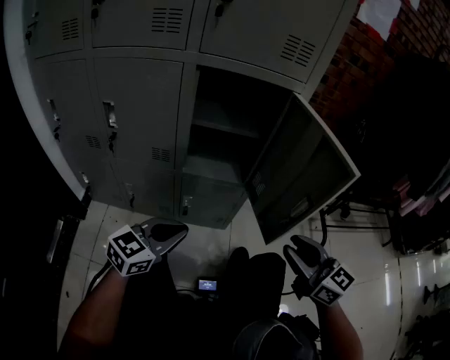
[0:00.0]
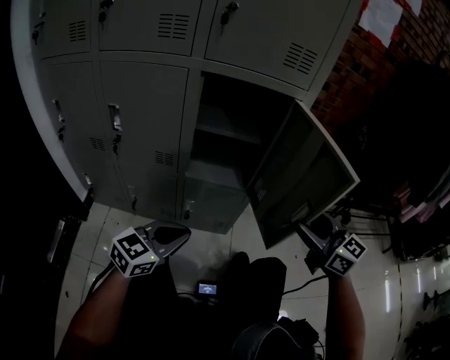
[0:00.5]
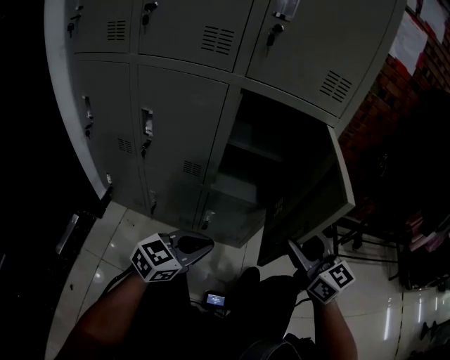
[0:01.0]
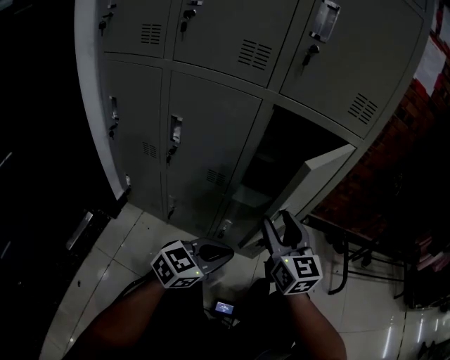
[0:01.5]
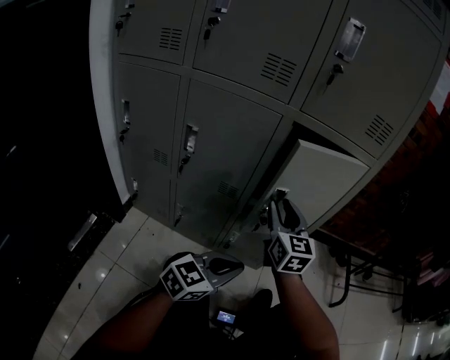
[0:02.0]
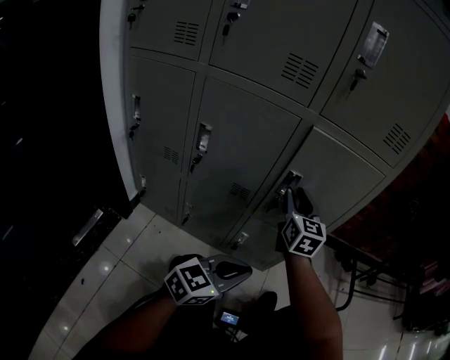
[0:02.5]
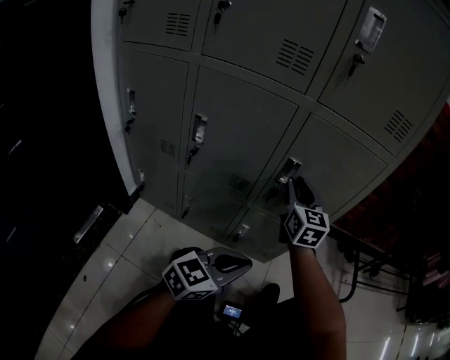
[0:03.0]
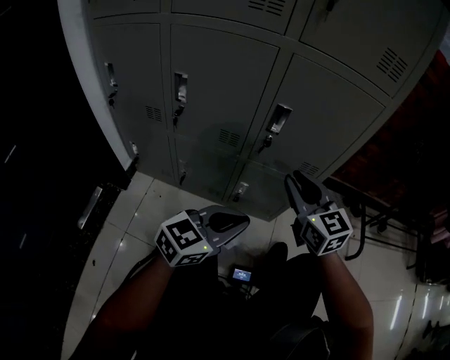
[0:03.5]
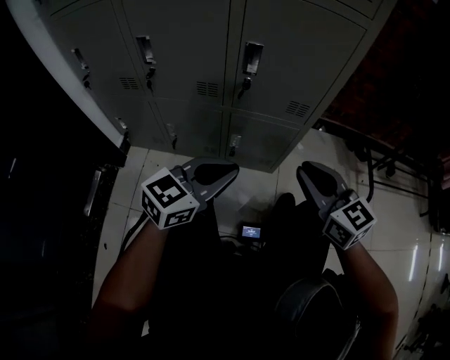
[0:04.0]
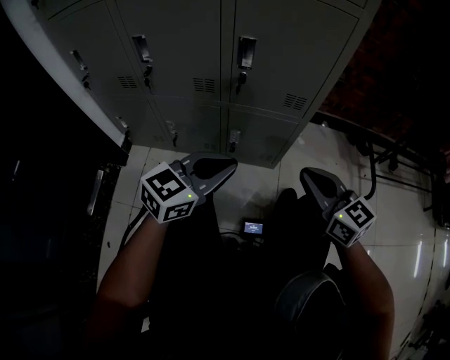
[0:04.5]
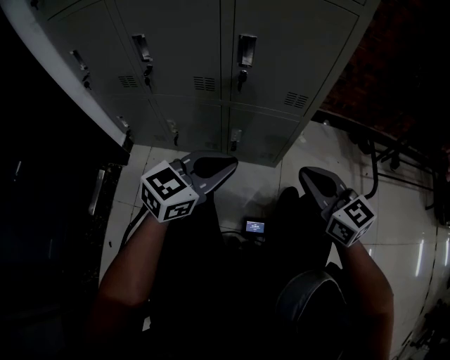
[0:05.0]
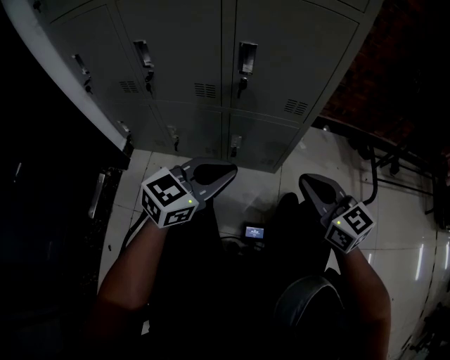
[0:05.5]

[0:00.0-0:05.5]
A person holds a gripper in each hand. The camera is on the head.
0:00.0 to 0:02.0: The right gripper goes roughly 30 cm to the left and forward, changes its angle by roughly 20 degrees, and opens and closes again.
0:02.0 to 0:03.5: The right gripper goes roughly 5 cm backward.
0:03.5 to 0:05.5: The right gripper moves backward, to the right and downward, about 15 cm.

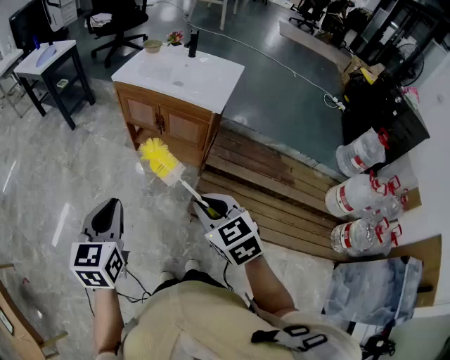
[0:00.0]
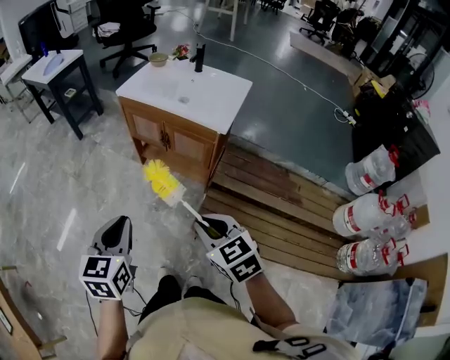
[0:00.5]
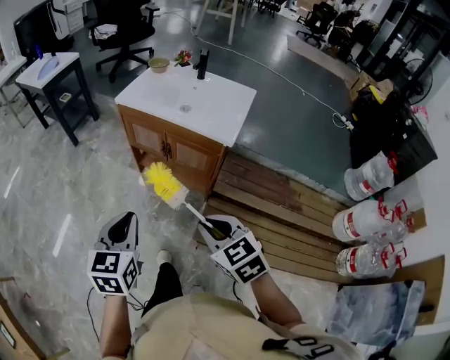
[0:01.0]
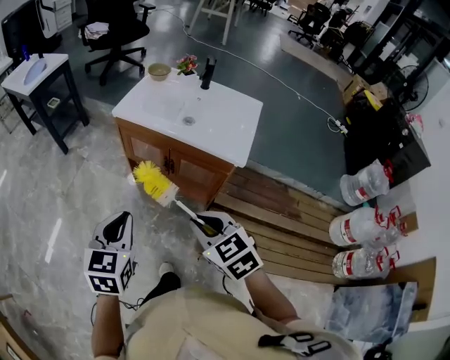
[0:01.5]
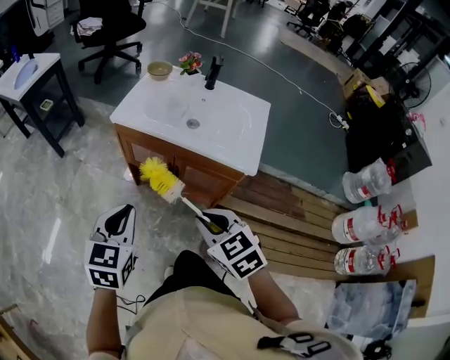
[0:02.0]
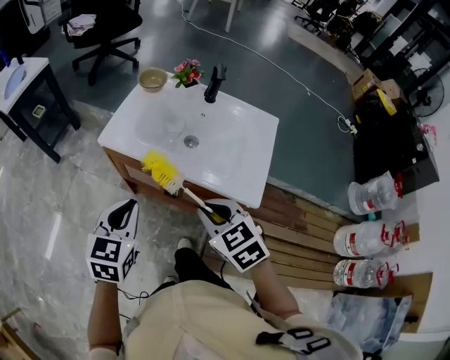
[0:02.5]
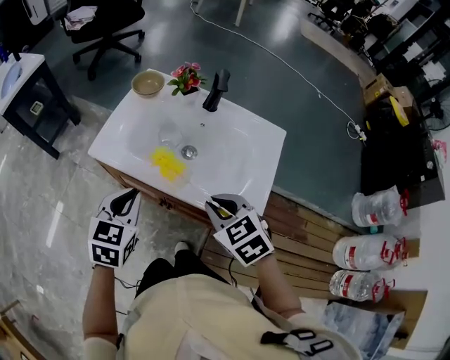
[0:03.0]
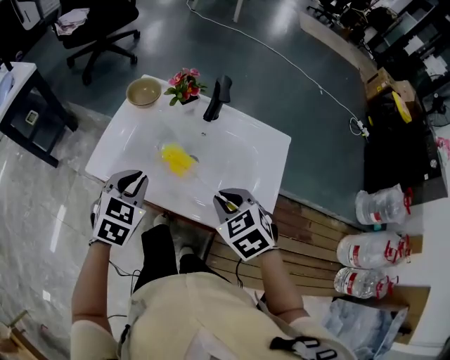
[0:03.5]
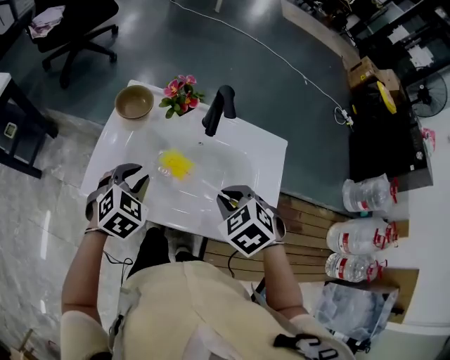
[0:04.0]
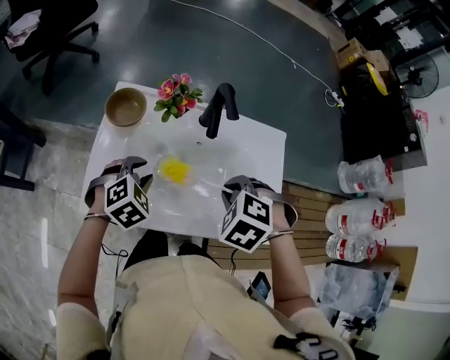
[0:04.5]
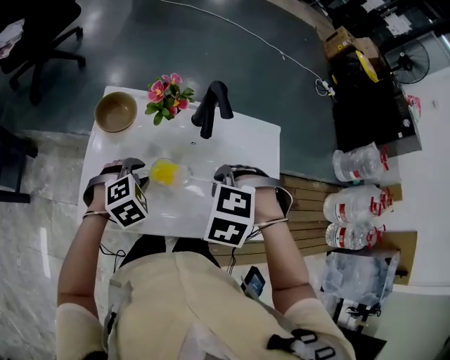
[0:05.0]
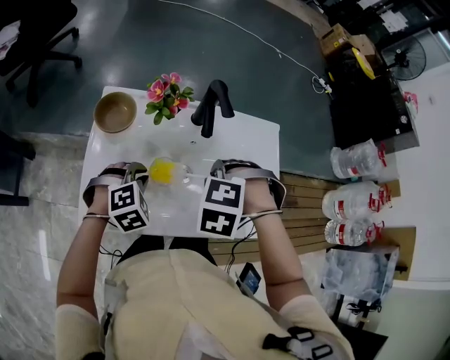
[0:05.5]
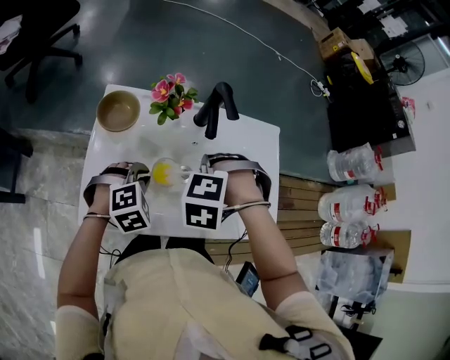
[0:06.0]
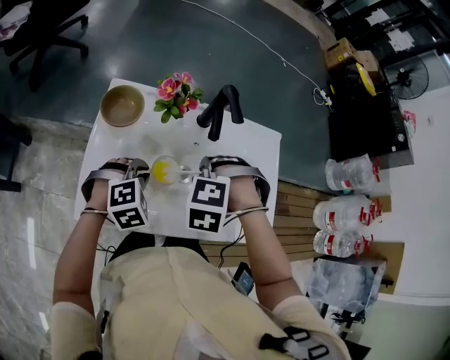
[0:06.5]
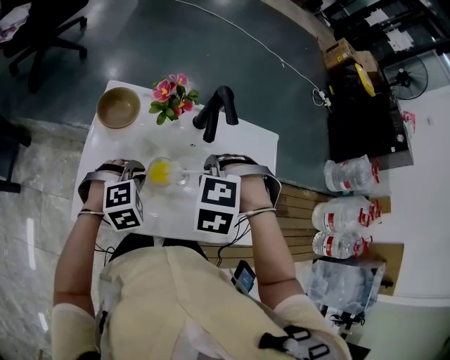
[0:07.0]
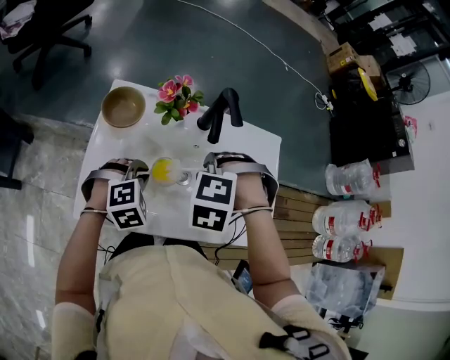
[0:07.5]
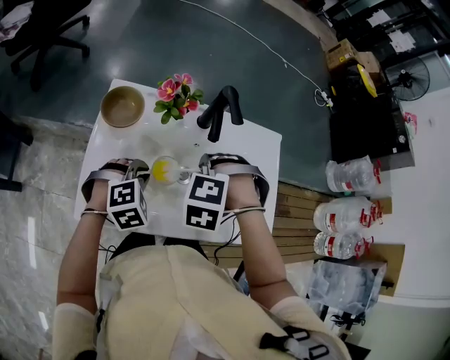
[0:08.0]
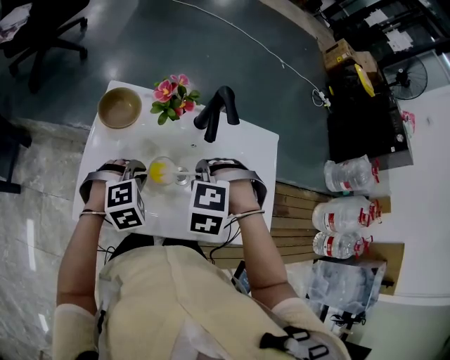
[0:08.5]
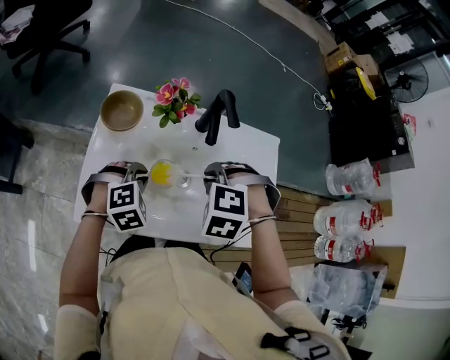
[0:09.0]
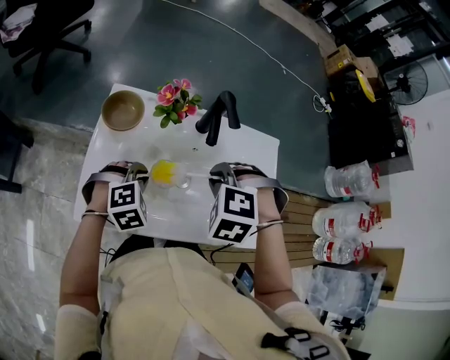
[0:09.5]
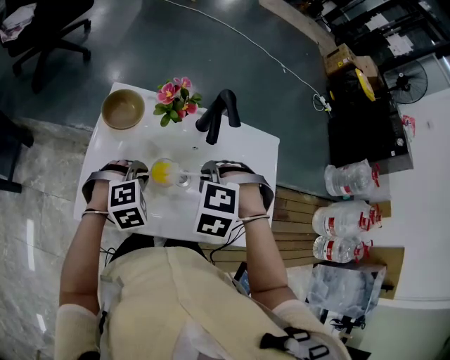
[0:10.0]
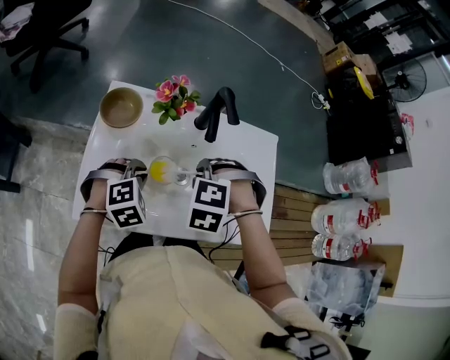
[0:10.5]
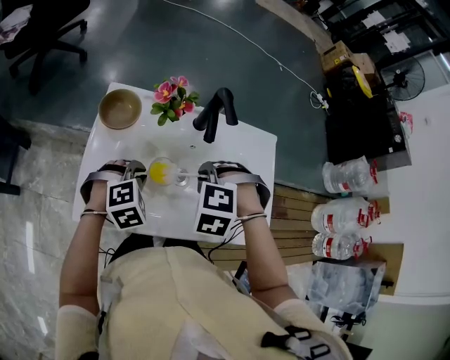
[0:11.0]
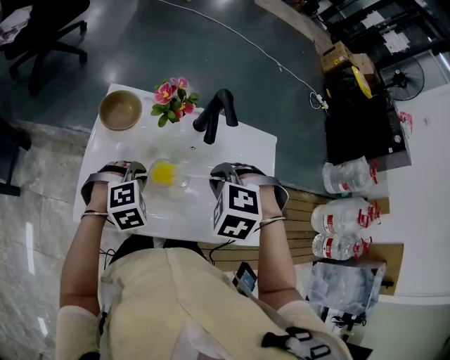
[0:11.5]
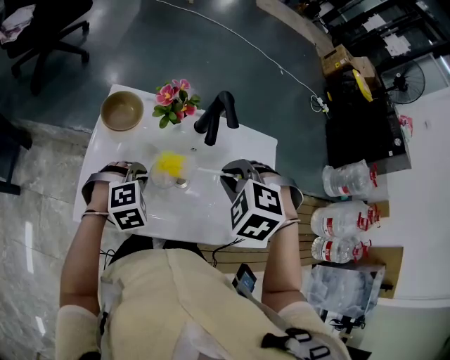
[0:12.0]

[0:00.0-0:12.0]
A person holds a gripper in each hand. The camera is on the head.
0:00.0 to 0:02.0: The left gripper ends up about 35 cm from where it was.
0:02.0 to 0:04.0: The left gripper moves about 40 cm, and turns by about 40 degrees.
0:04.0 to 0:06.0: The left gripper shifts approximately 5 cm downward, and rotates about 40 degrees.

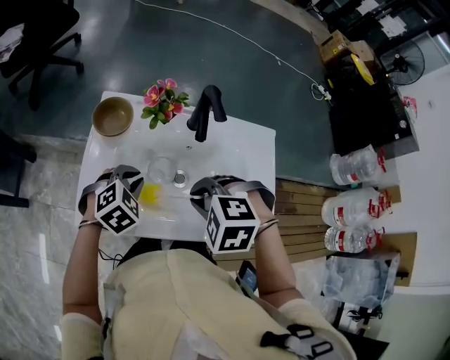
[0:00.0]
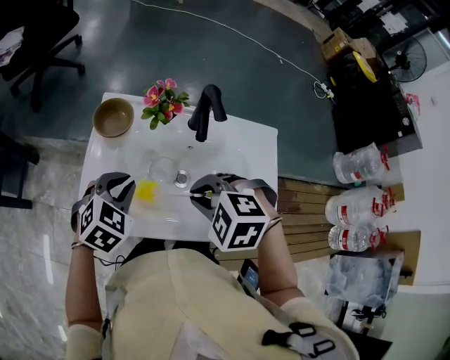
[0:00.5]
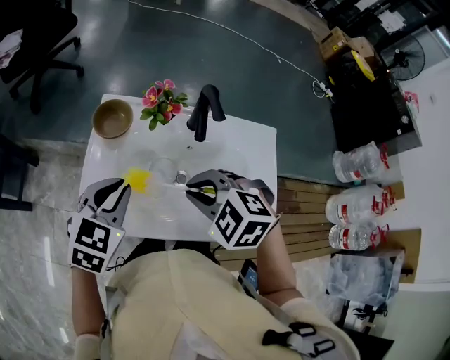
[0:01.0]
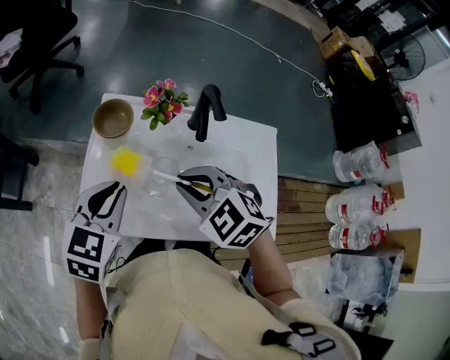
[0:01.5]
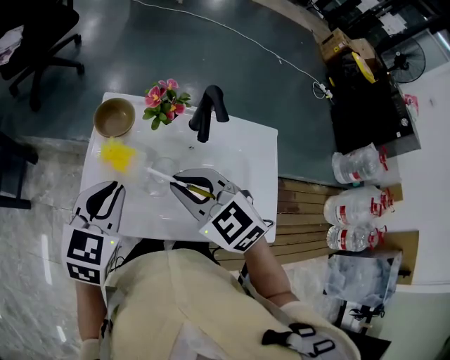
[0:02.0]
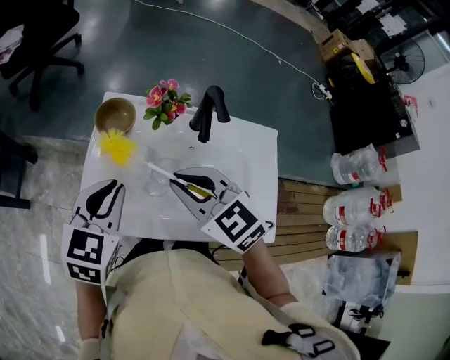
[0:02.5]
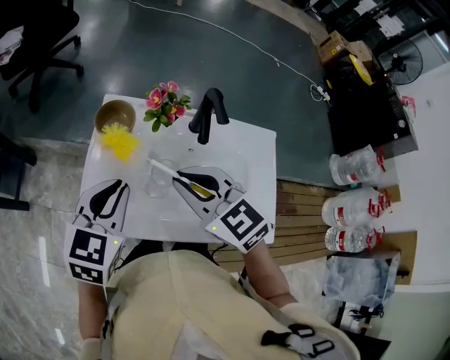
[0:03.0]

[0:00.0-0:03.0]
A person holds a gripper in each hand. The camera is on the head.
0:00.0 to 0:01.5: The left gripper goes roughly 15 cm upward, and rotates roughly 40 degrees.

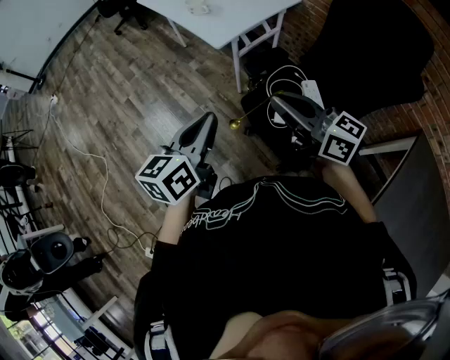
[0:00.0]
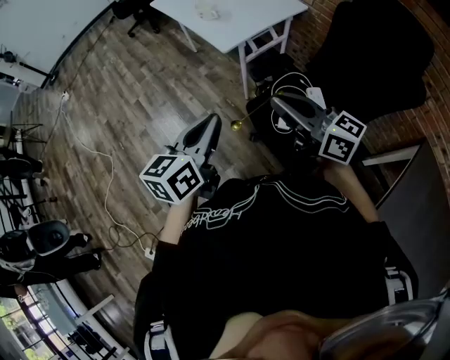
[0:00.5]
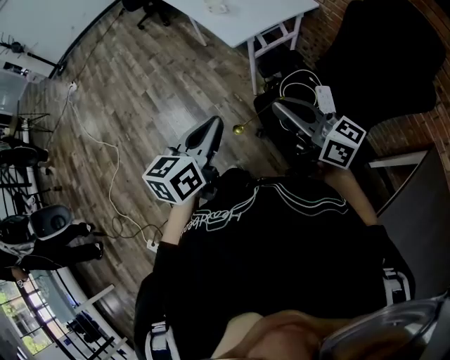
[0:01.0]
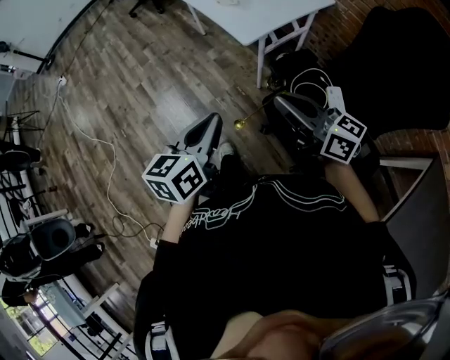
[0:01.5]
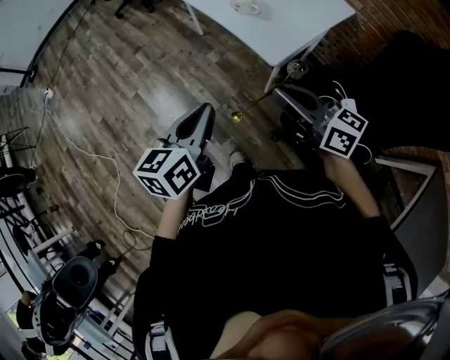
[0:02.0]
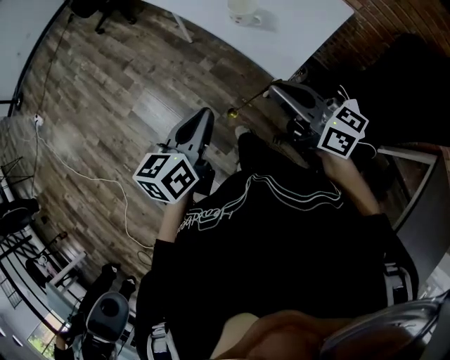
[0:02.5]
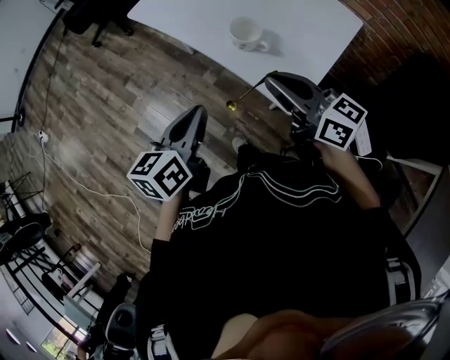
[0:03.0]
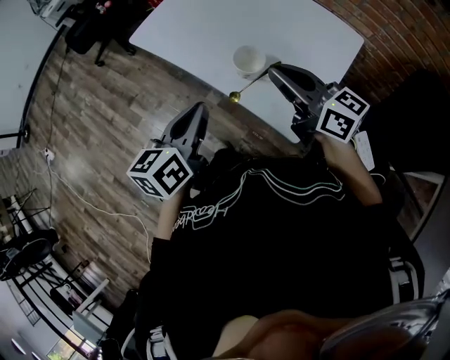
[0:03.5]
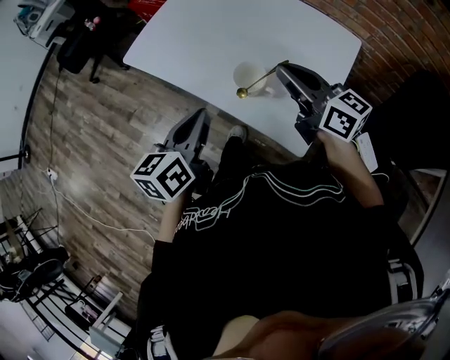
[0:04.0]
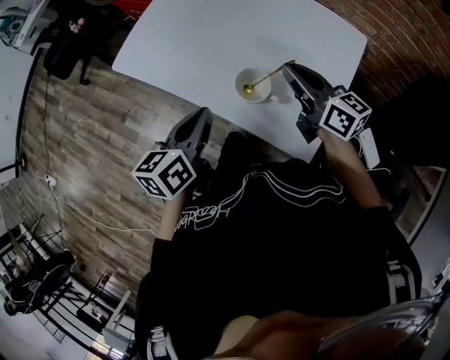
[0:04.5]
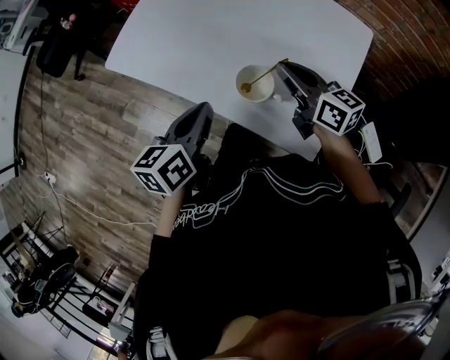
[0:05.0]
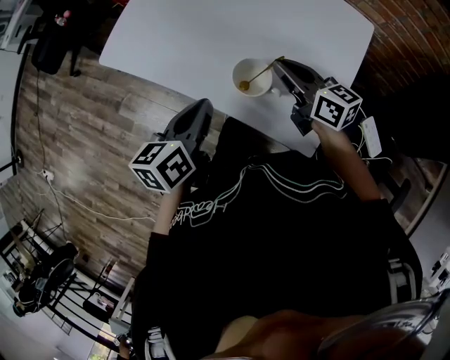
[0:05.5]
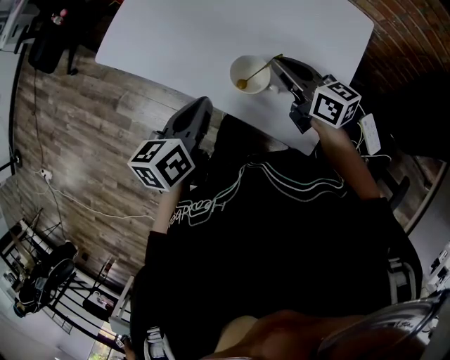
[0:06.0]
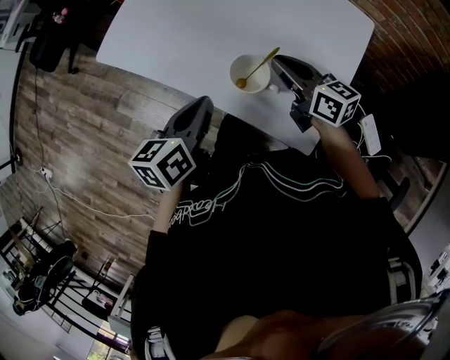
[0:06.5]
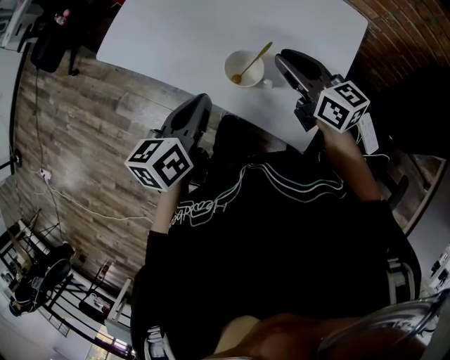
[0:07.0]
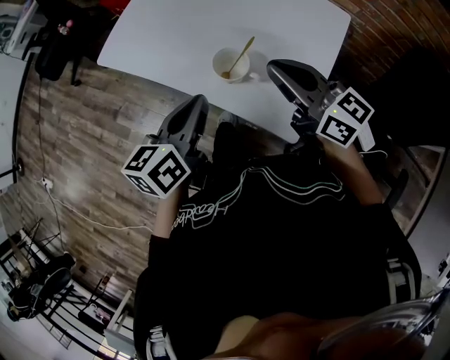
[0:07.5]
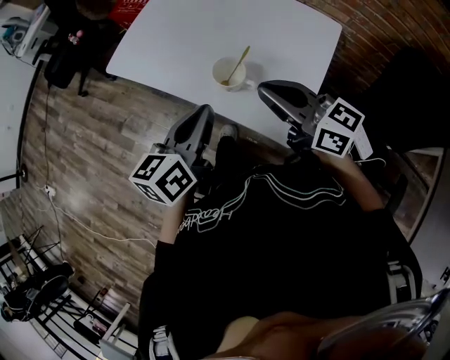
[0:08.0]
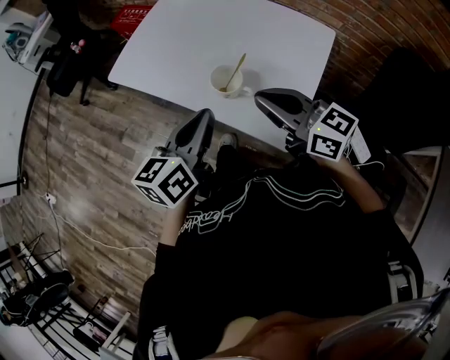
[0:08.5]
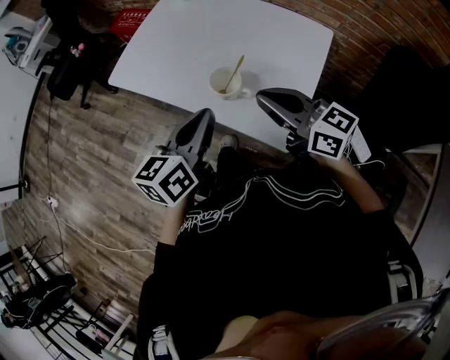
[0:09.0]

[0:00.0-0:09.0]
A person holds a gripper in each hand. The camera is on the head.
0:00.0 to 0:02.0: Both grippers travel together forward and to the left, about 35 cm.
0:02.0 to 0:04.5: Both grippers are carried forward, approximately 50 cm. The right gripper turns by some 30 degrees.
0:07.0 to 0:09.0: The left gripper travels upward and backward by about 10 cm, while the right gripper moves backward and upward, roughly 15 cm.
